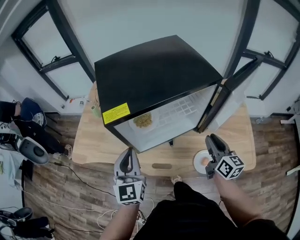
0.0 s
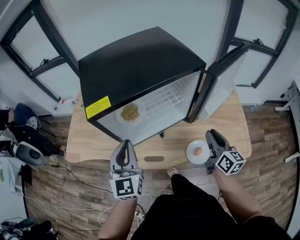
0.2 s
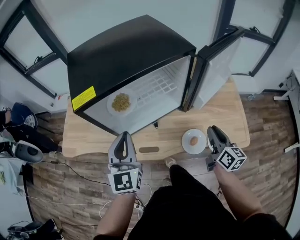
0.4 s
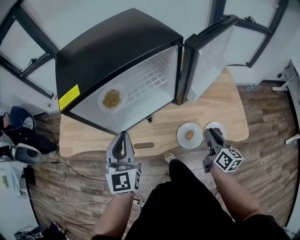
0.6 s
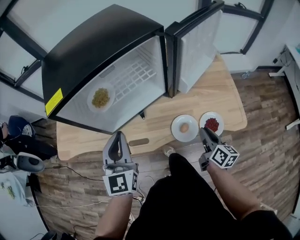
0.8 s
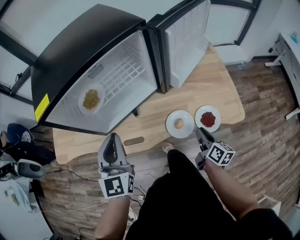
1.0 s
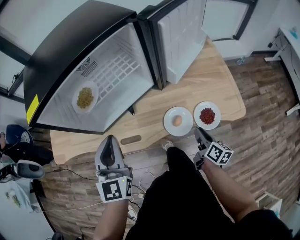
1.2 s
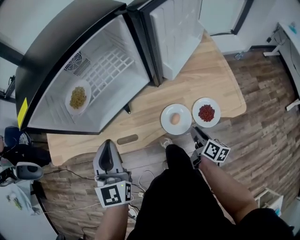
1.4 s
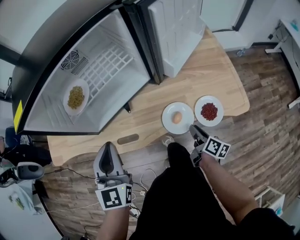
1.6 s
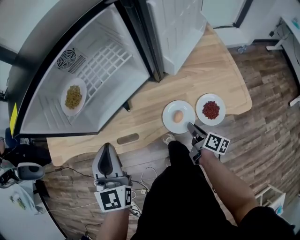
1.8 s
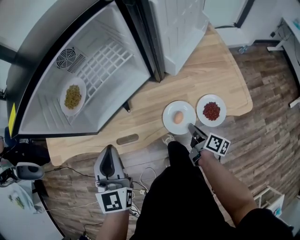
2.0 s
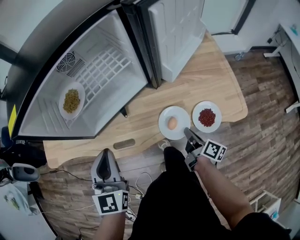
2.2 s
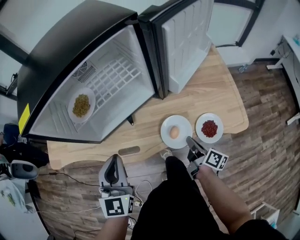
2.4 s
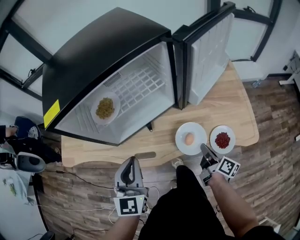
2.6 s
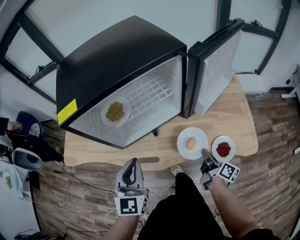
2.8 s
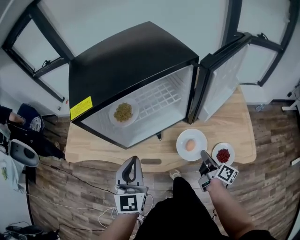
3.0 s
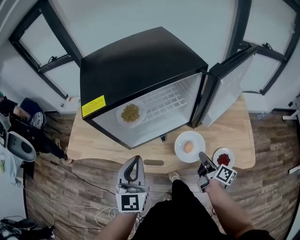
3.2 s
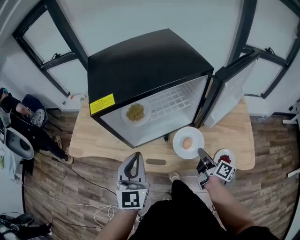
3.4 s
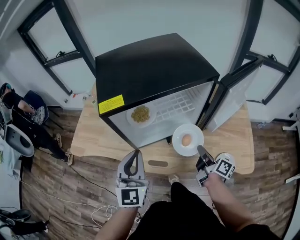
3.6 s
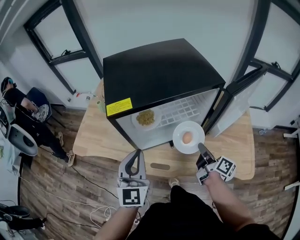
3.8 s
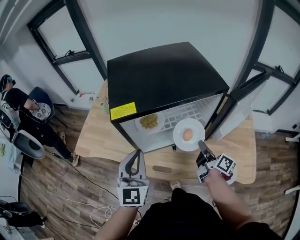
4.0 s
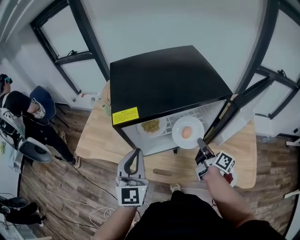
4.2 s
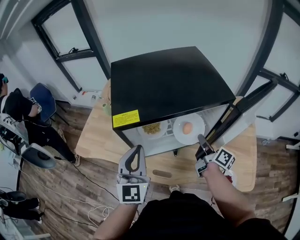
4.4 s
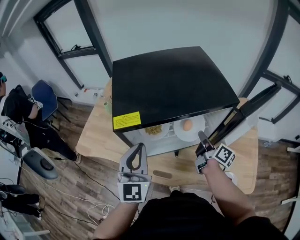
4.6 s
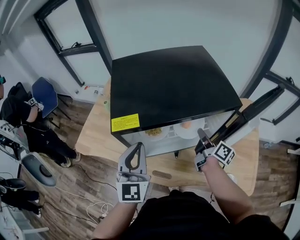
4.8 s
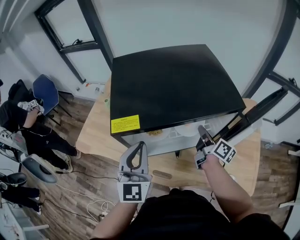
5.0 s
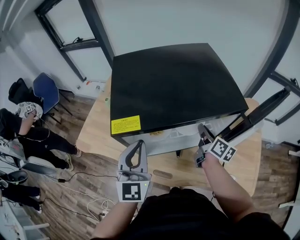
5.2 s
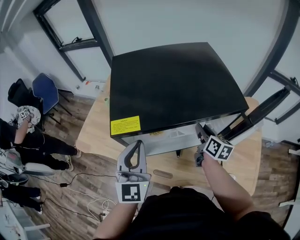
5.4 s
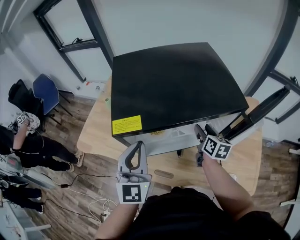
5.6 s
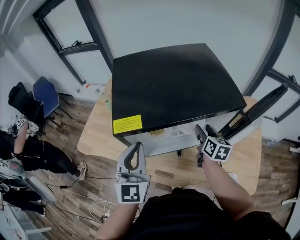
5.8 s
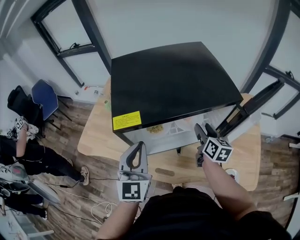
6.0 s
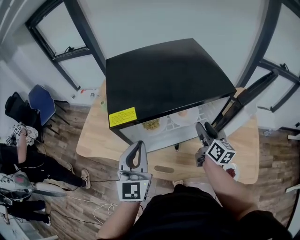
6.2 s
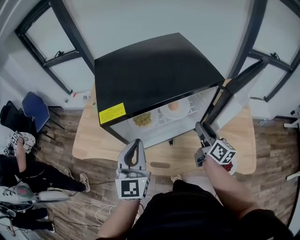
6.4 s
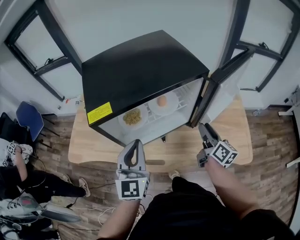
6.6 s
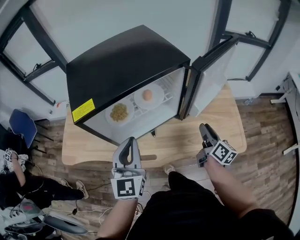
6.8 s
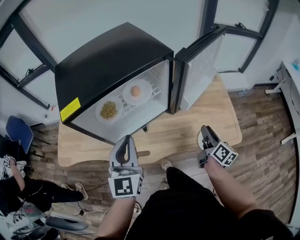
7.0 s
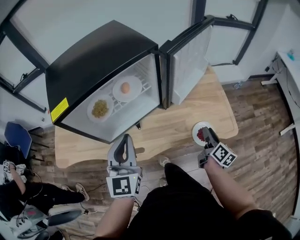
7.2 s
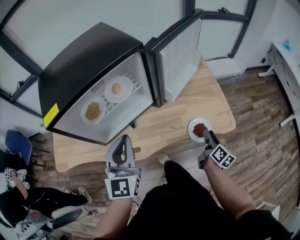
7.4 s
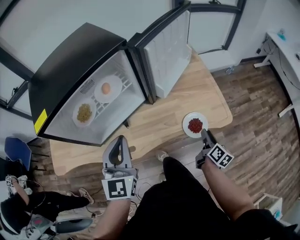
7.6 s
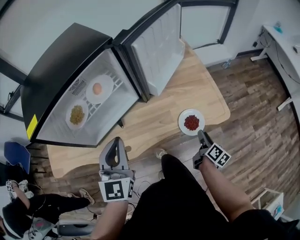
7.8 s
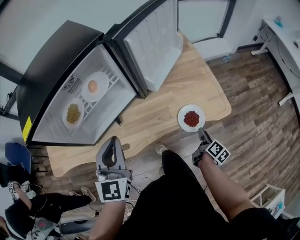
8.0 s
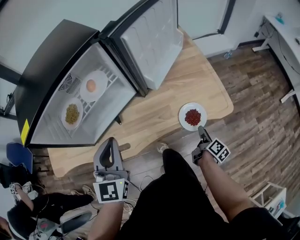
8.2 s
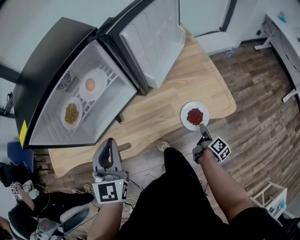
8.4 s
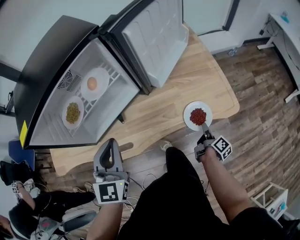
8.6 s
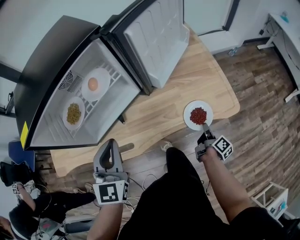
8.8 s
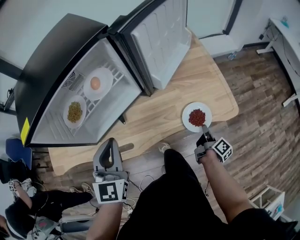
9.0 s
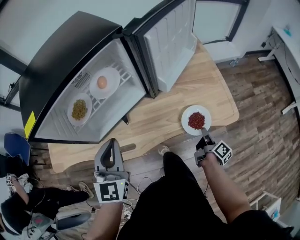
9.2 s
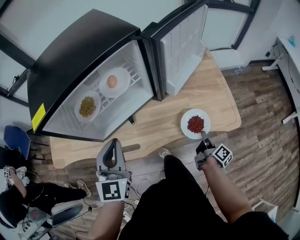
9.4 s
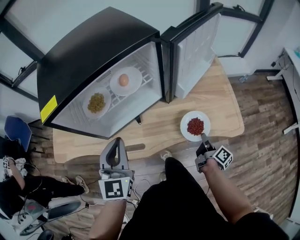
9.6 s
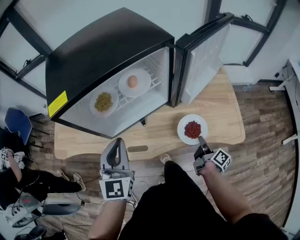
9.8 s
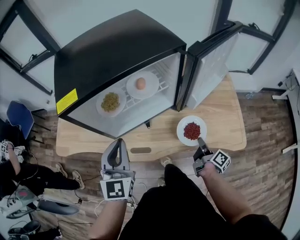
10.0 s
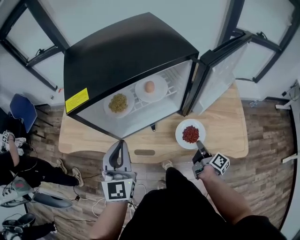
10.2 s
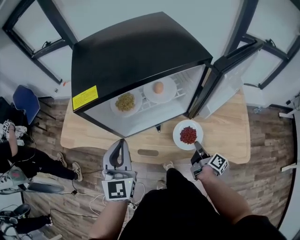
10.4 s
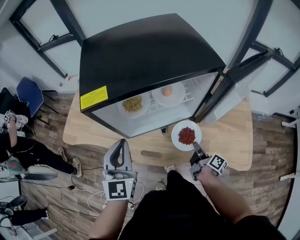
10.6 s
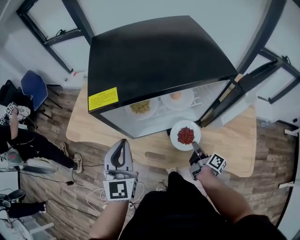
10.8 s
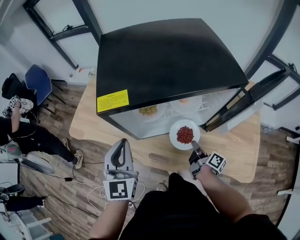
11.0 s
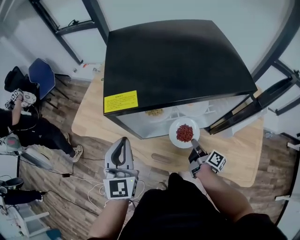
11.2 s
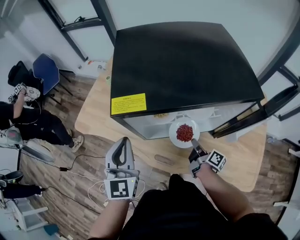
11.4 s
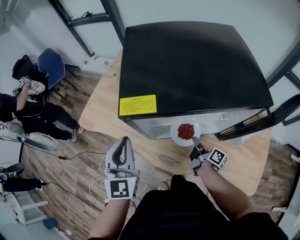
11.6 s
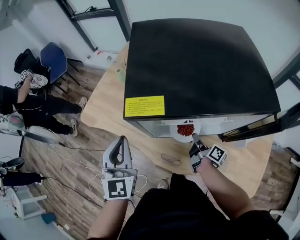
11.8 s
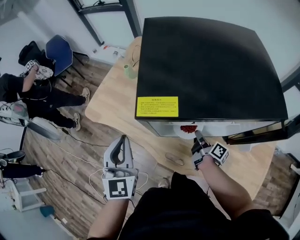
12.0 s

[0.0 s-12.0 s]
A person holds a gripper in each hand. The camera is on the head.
0.0 to 1.6 s: The right gripper is displaced downward, backward and to the right by approximately 35 cm, and changes its angle by approximately 40 degrees; the left gripper shifts about 15 cm to the right and downward.
1.6 to 3.0 s: The right gripper goes roughly 15 cm upward, forward and to the left, swivels about 20 degrees, and closes its fingers. The left gripper moves some 5 cm.
3.0 to 4.4 s: The left gripper shifts some 15 cm upward, forward and to the left, while the right gripper shifts about 20 cm forward and upward.
4.4 to 6.0 s: The right gripper is displaced forward by approximately 5 cm, changes its angle by roughly 40 degrees, and opens its fingers.
6.0 to 7.6 s: The left gripper changes place by roughly 20 cm, and changes its angle by approximately 20 degrees, while the right gripper changes place by some 50 cm, and turns by some 50 degrees.
7.6 to 9.0 s: The right gripper heads downward, covering about 10 cm, swivels some 30 degrees, and closes its fingers.
9.0 to 10.4 s: The right gripper ends up roughly 25 cm from where it was, and rotates approximately 30 degrees; the left gripper changes place by roughly 15 cm, and swivels some 20 degrees.
10.4 to 12.0 s: The right gripper moves forward and to the left, some 25 cm, and turns by approximately 20 degrees. Meanwhile the left gripper goes approximately 15 cm to the left, and rotates approximately 20 degrees.

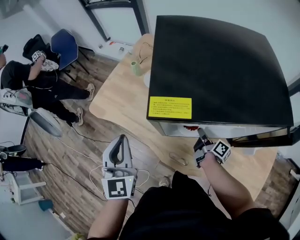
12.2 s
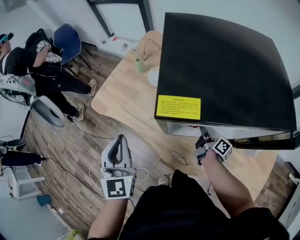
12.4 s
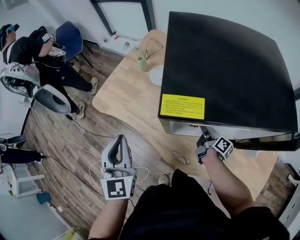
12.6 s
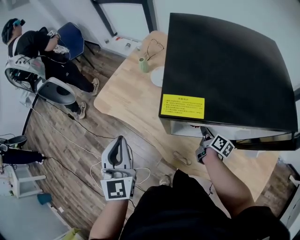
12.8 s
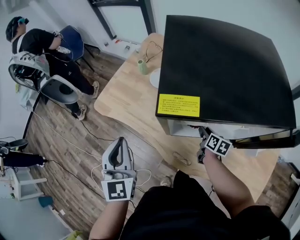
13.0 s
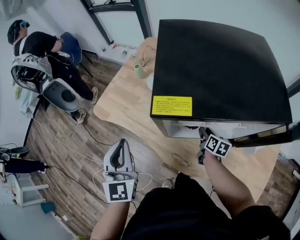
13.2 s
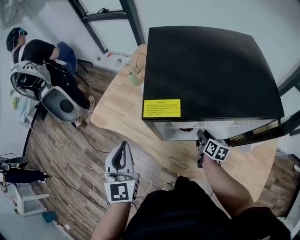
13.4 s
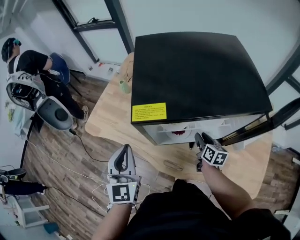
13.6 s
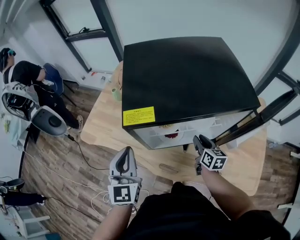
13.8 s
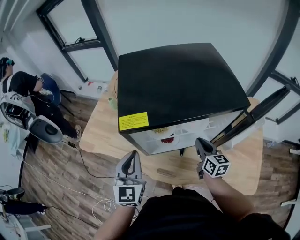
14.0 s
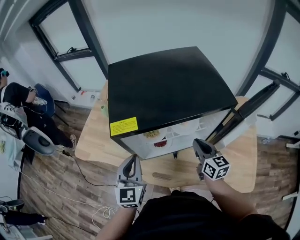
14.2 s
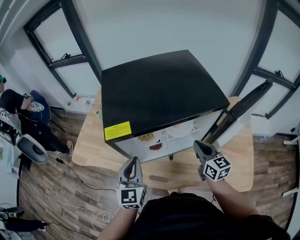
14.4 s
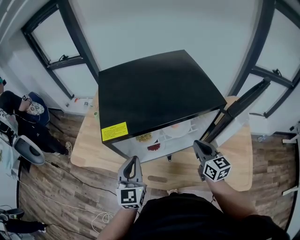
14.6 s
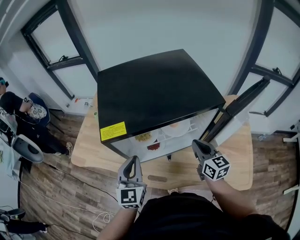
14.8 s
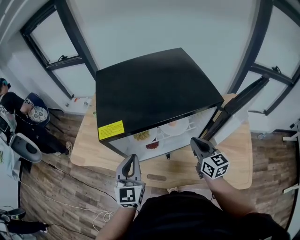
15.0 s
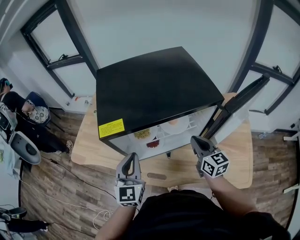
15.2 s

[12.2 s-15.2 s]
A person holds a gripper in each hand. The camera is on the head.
12.2 to 13.8 s: The left gripper travels to the right by approximately 5 cm, while the right gripper is displaced upward and to the right by about 10 cm, rotates around the line of its fingers by approximately 40 degrees, counterclockwise from behind, and opens.
13.8 to 15.2 s: The left gripper is displaced to the right by roughly 10 cm. The right gripper heads upward and to the right, covering roughly 15 cm, swivels some 20 degrees, and closes.

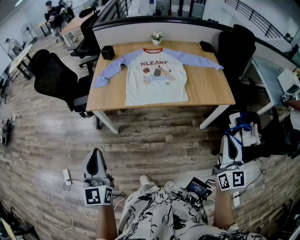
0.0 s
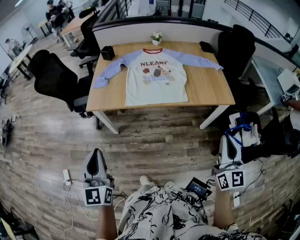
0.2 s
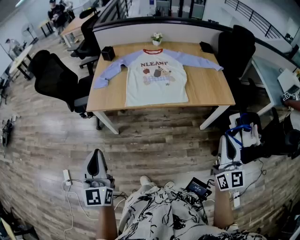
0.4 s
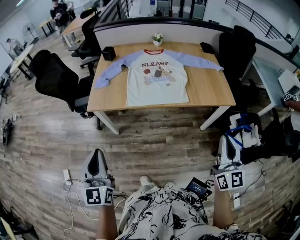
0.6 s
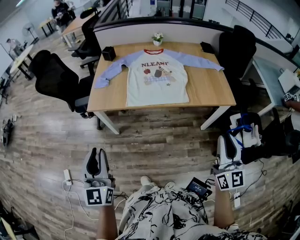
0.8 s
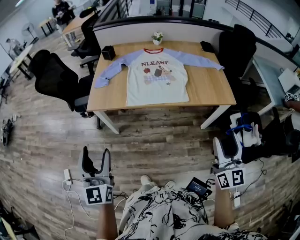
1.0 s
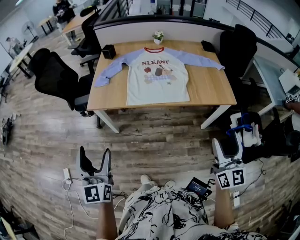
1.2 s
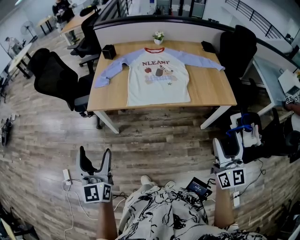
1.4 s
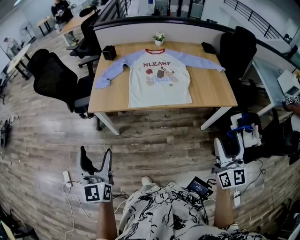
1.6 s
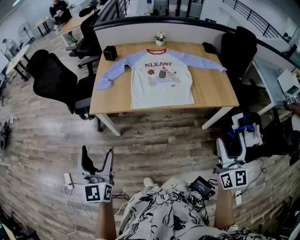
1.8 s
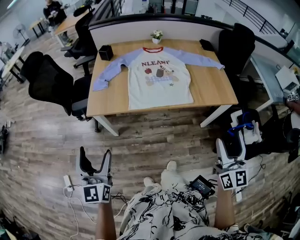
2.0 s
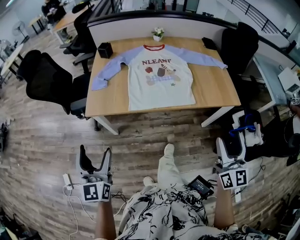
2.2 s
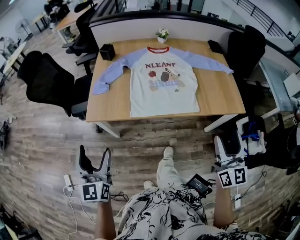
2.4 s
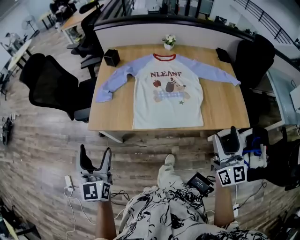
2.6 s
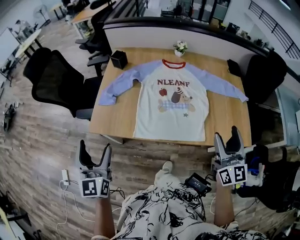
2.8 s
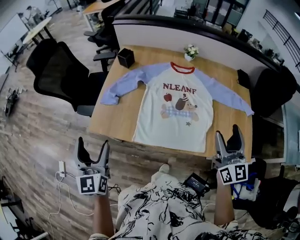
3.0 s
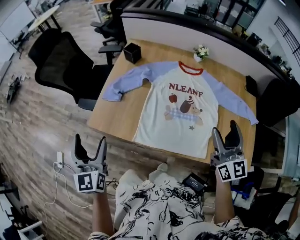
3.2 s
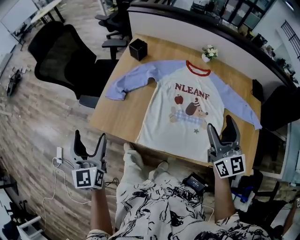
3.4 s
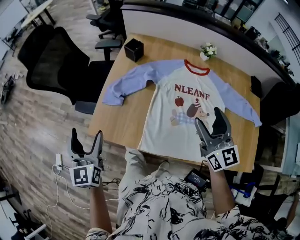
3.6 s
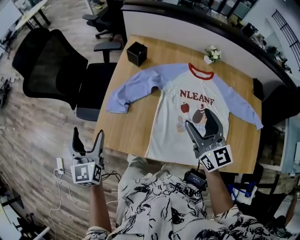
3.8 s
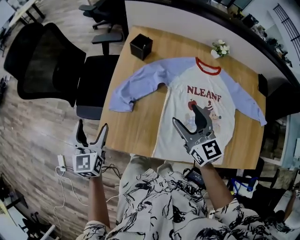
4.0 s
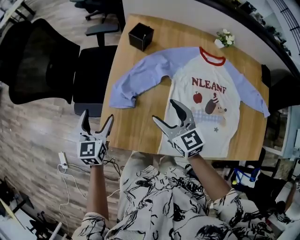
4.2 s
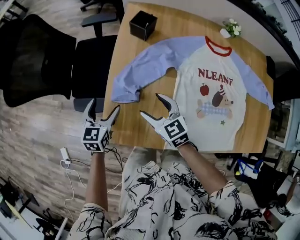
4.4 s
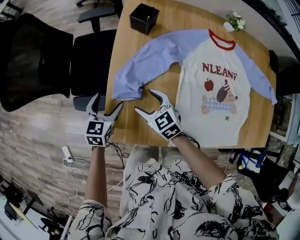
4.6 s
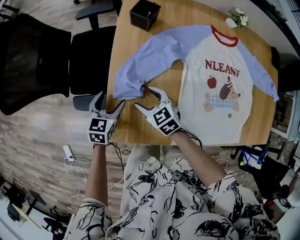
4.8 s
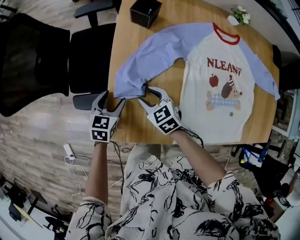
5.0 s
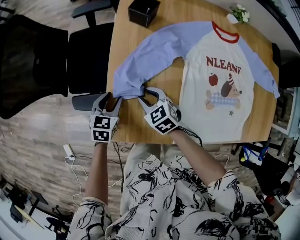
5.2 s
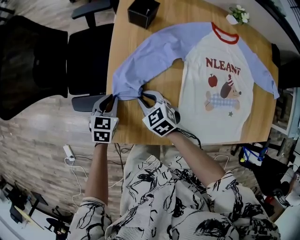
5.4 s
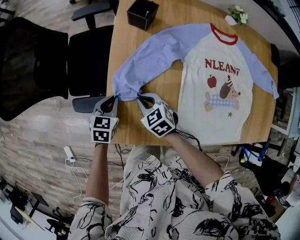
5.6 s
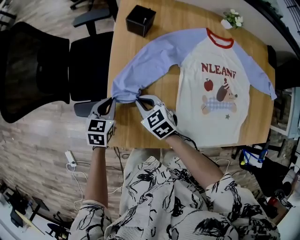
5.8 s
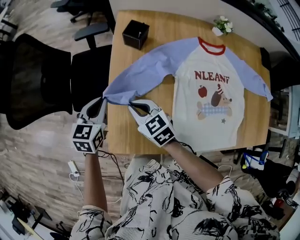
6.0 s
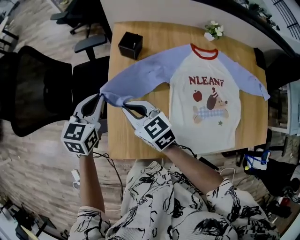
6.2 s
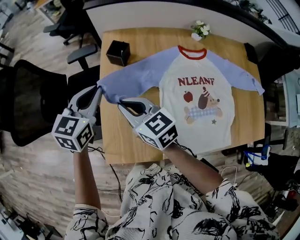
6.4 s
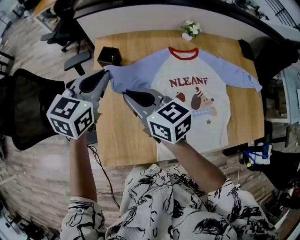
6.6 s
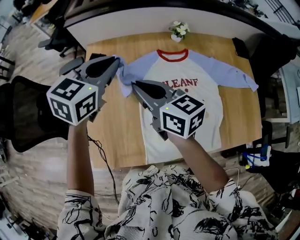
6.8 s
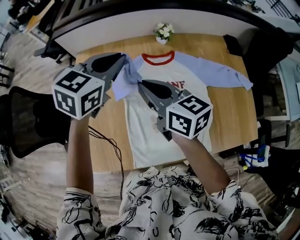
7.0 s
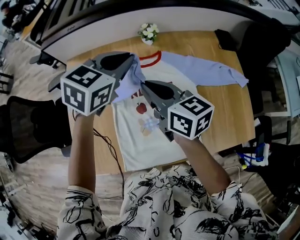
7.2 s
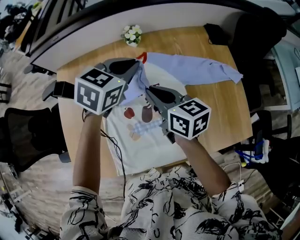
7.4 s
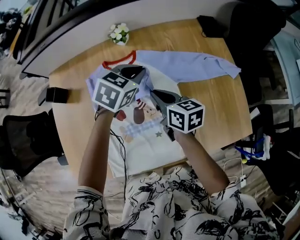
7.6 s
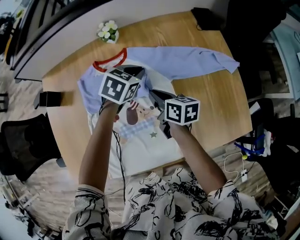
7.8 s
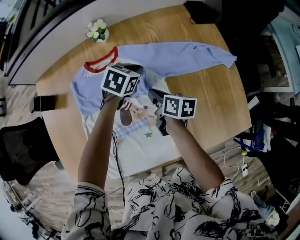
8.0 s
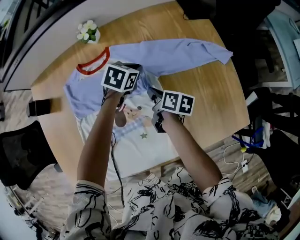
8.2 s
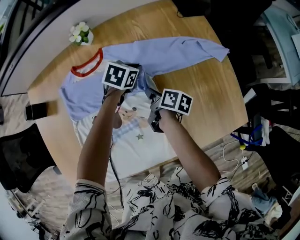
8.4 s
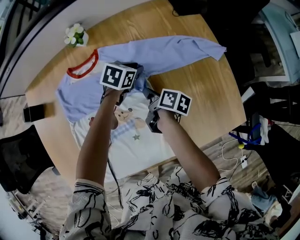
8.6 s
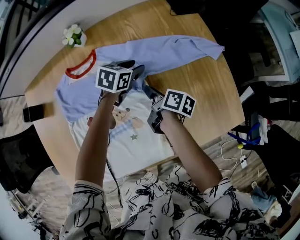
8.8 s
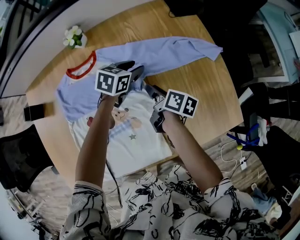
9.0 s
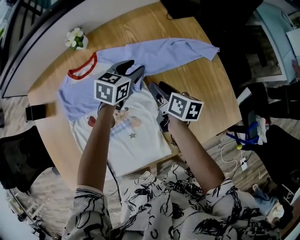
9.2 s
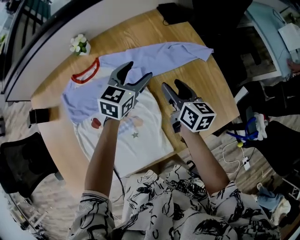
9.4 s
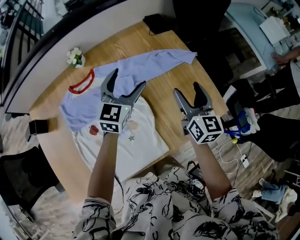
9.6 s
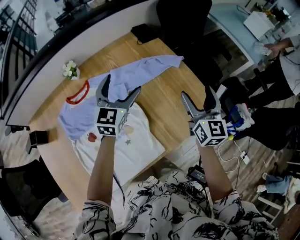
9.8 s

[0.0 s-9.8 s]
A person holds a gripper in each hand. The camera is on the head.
0.0 to 1.4 s: The right gripper opens its fingers. The left gripper opens.
1.4 to 2.8 s: The two grippers go some 30 cm forward.
2.8 to 4.2 s: The right gripper is displaced forward, to the left and downward by about 50 cm, and rotates roughly 40 degrees, while the left gripper heads forward and downward, covering about 40 cm, and turns by approximately 30 degrees.
4.2 to 5.6 s: The right gripper travels downward and to the left by roughly 20 cm, swivels some 30 degrees, and closes; the left gripper shifts approximately 15 cm downward, changes its angle by roughly 30 degrees, and closes.
5.6 to 7.0 s: The right gripper goes approximately 50 cm upward and to the right, and angles its fingers upward, by roughly 40 degrees; the left gripper heads to the right and upward, covering roughly 50 cm, and swivels some 40 degrees.
7.0 to 8.4 s: Both grippers travel together downward and to the right, roughly 50 cm. The left gripper changes its angle by about 40 degrees; the right gripper rolls clockwise, seen from behind, by roughly 60 degrees.
8.4 to 9.8 s: The left gripper goes about 25 cm upward, points its fingers some 40 degrees further upward, and opens up, while the right gripper travels upward and to the right by roughly 40 cm, changes its angle by about 80 degrees, and opens up.
